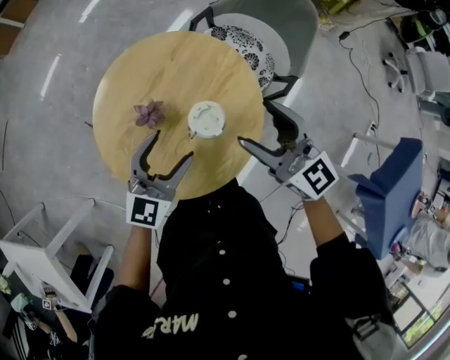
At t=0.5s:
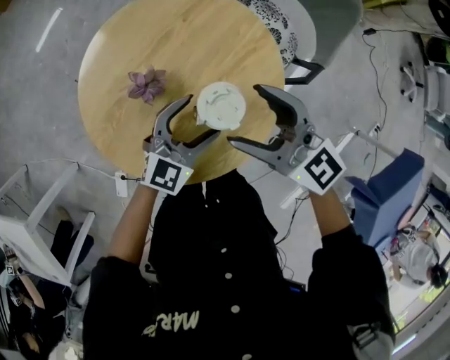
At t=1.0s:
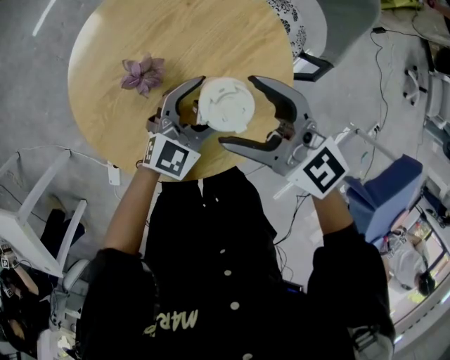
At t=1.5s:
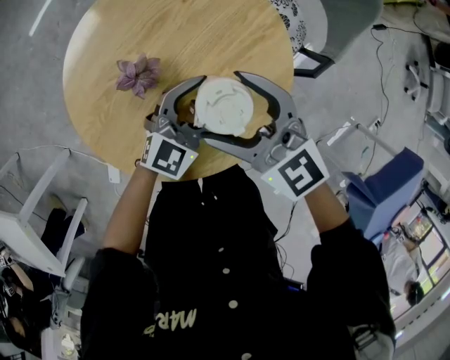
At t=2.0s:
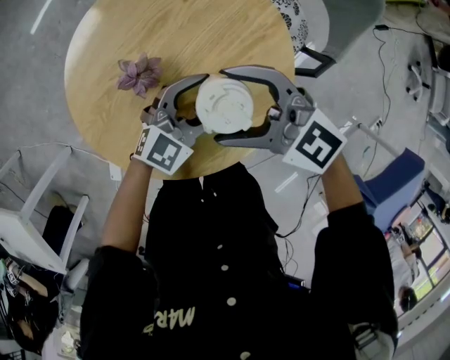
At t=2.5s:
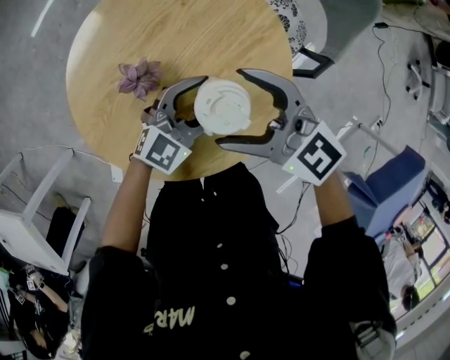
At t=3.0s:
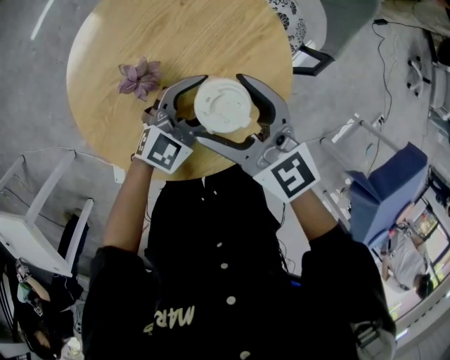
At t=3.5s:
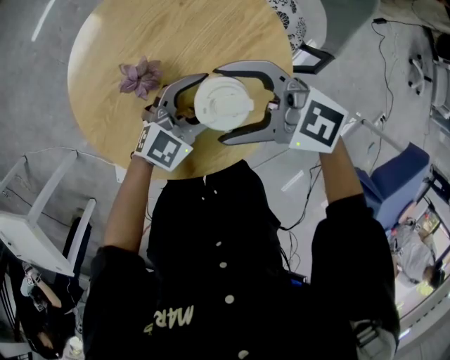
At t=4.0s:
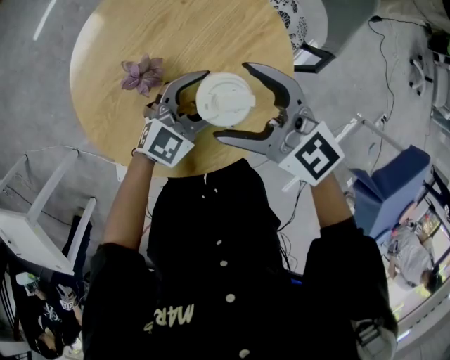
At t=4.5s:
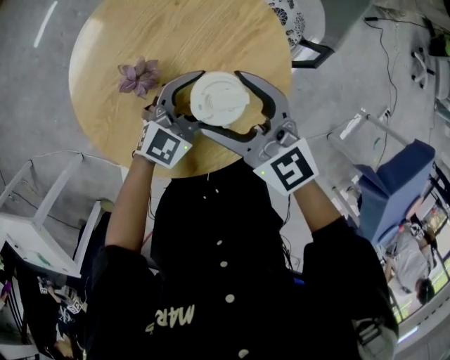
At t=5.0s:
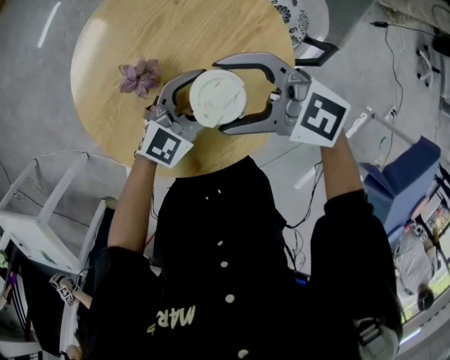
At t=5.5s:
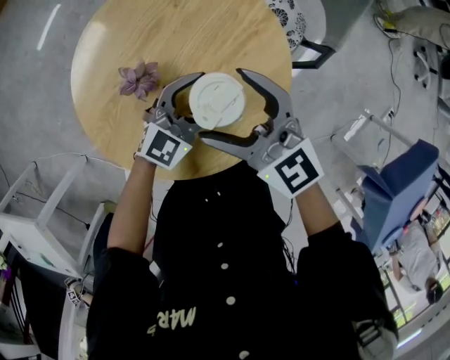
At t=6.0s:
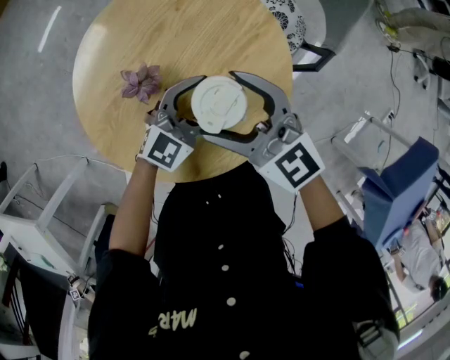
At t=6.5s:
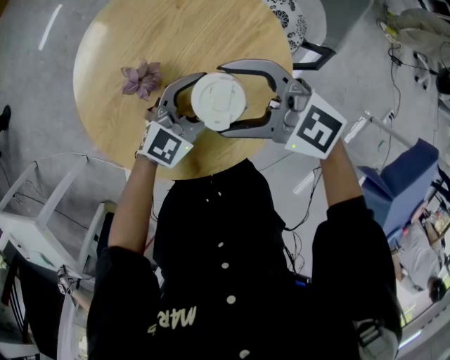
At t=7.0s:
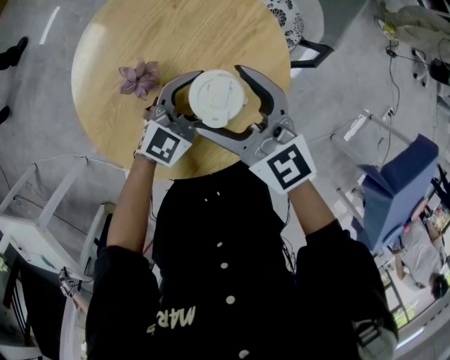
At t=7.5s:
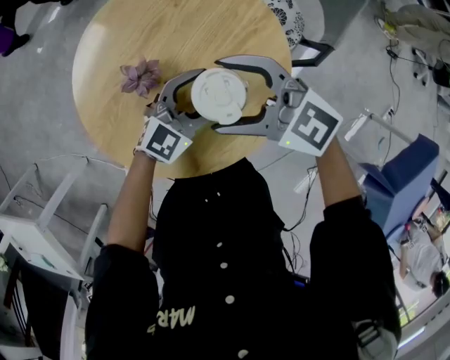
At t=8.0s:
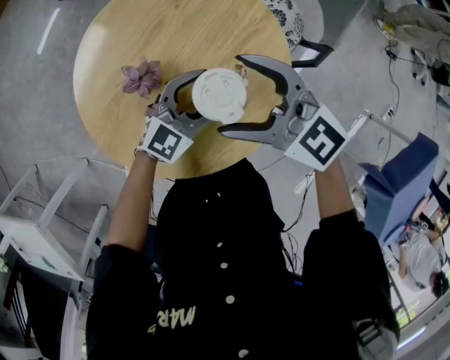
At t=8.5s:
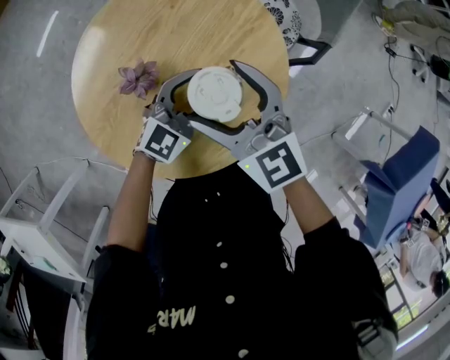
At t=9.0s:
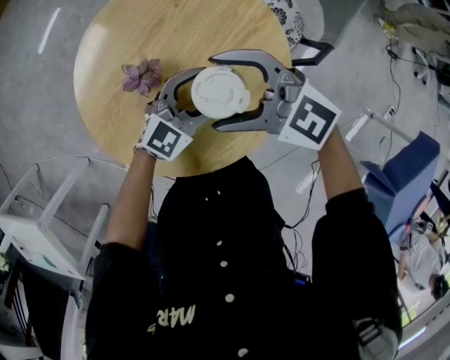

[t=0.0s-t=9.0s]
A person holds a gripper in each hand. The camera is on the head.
t=0.0s to t=2.0s: Both grippers travel together downward, approximately 15 cm. The right gripper swivels some 50 degrees.
t=2.0s to t=4.5s: The right gripper turns by approximately 30 degrees.
t=7.0s to t=9.0s: The right gripper rotates some 40 degrees.

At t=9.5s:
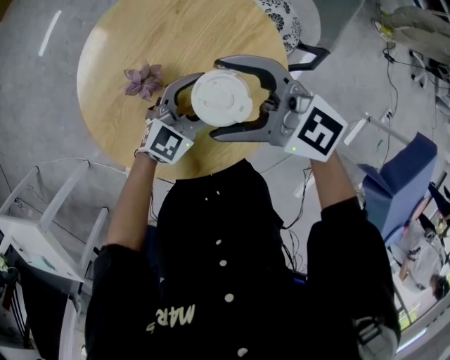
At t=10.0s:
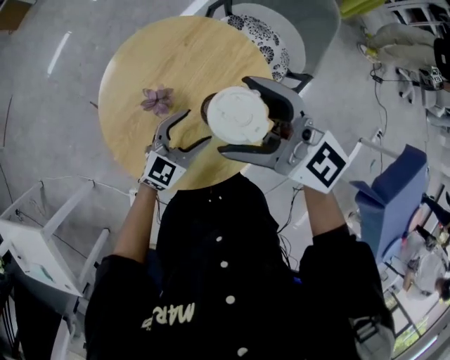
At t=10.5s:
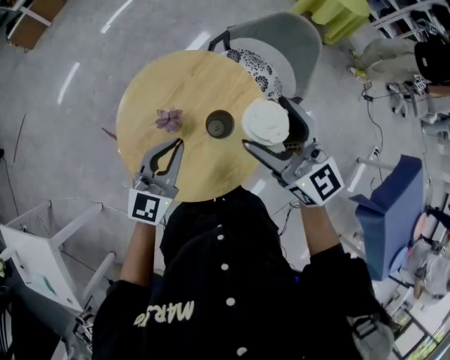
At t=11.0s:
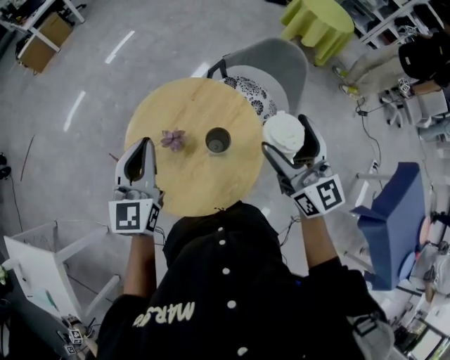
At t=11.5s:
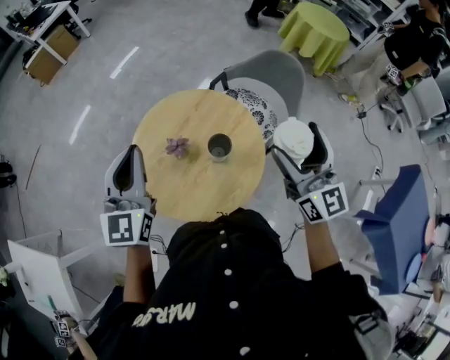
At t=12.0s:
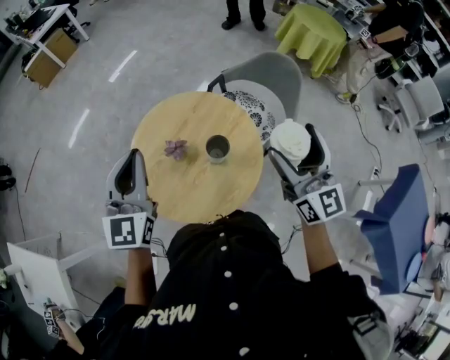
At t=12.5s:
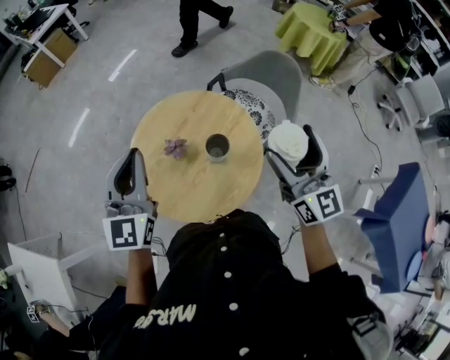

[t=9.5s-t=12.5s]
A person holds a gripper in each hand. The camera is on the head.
t=9.5s to t=11.0s: The right gripper moves upward, roughly 20 cm, and swivels some 50 degrees; the left gripper is displaced upward by roughly 35 cm, rotates some 50 degrees, and closes.
t=11.0s to t=12.5s: The left gripper moves upward, roughly 5 cm.

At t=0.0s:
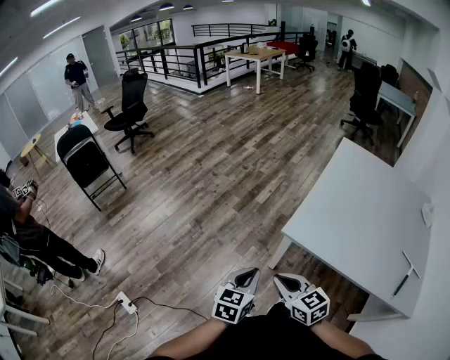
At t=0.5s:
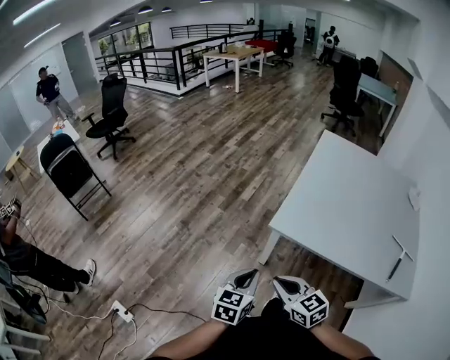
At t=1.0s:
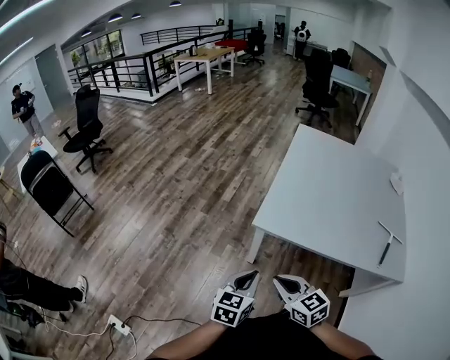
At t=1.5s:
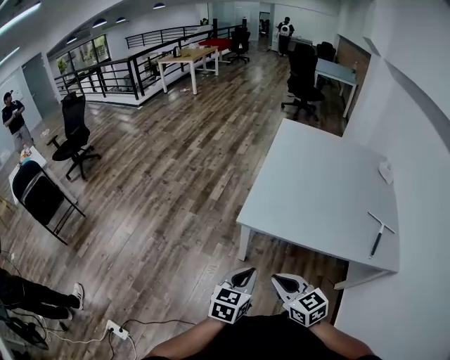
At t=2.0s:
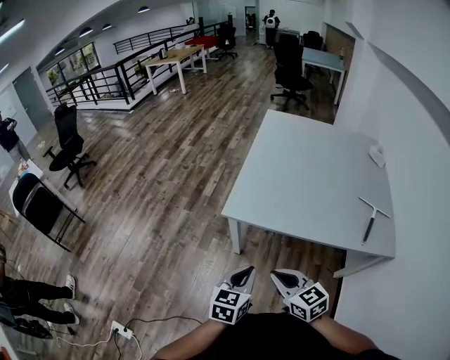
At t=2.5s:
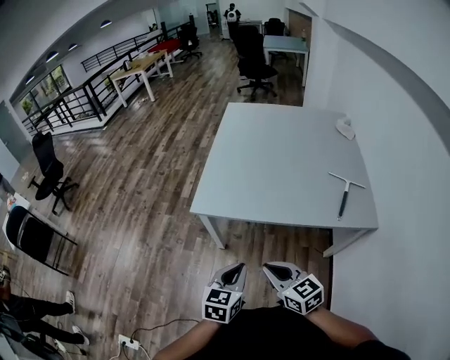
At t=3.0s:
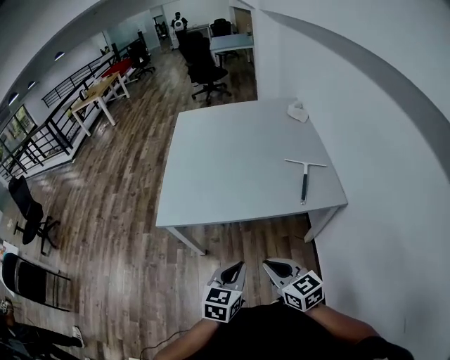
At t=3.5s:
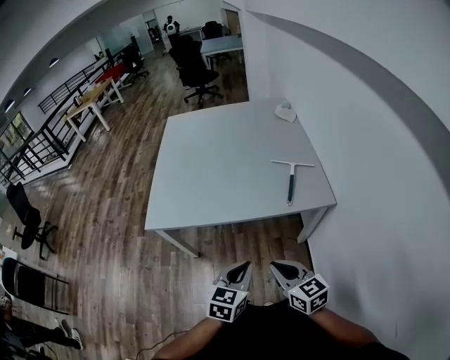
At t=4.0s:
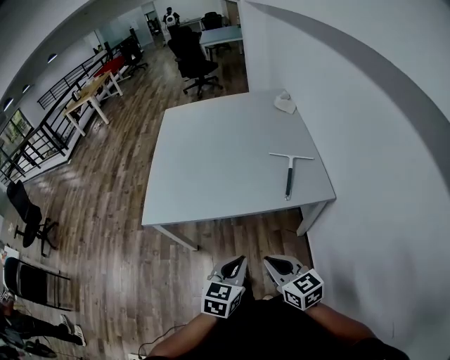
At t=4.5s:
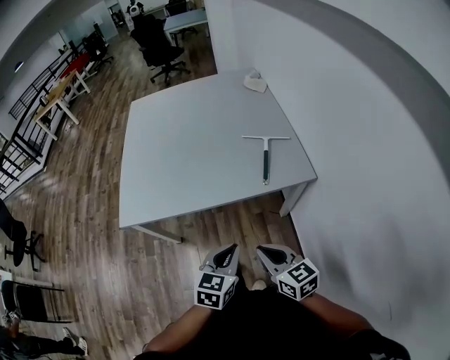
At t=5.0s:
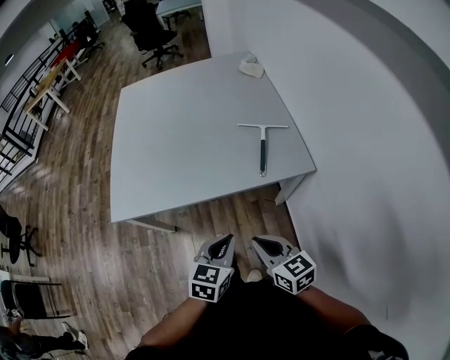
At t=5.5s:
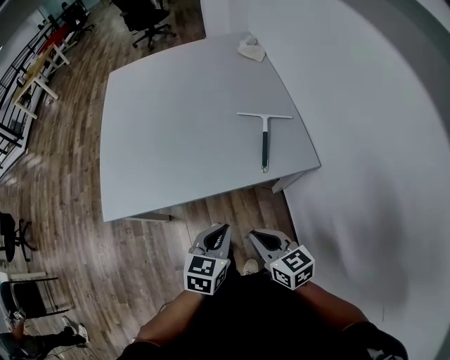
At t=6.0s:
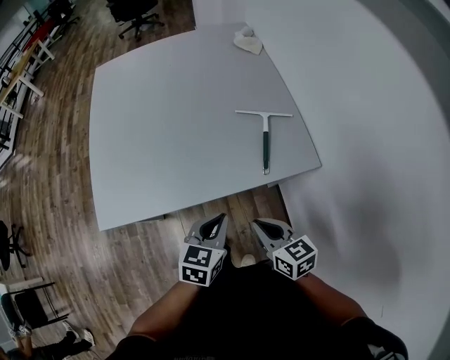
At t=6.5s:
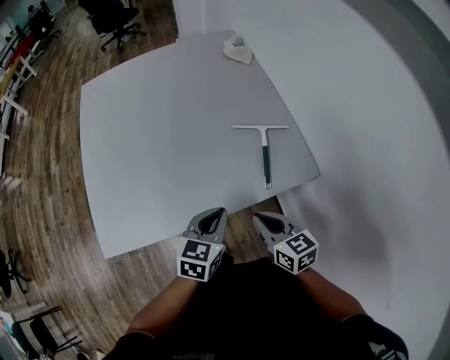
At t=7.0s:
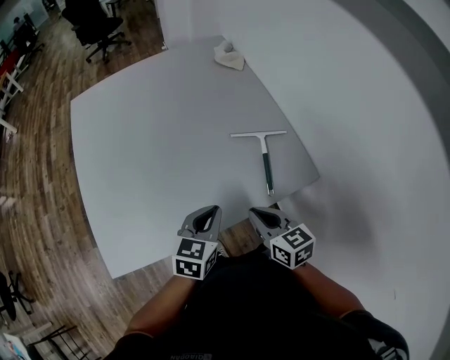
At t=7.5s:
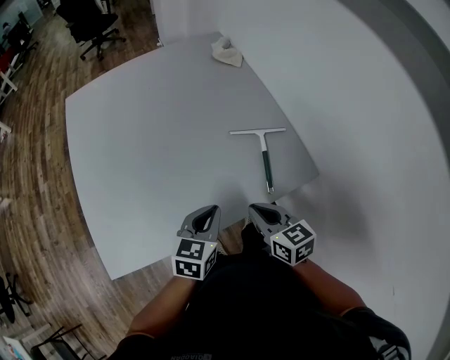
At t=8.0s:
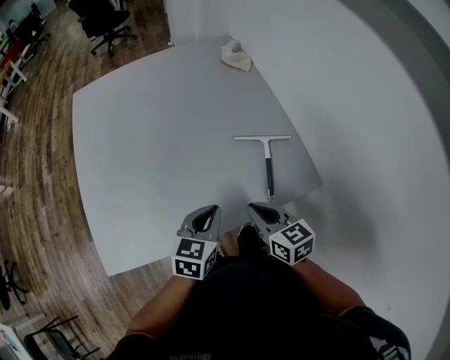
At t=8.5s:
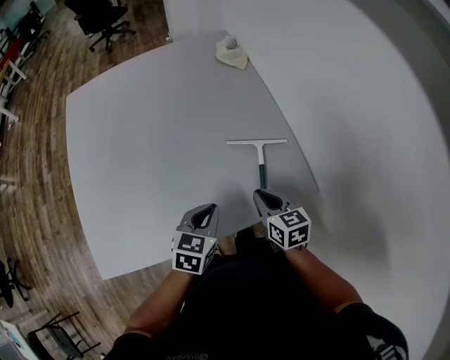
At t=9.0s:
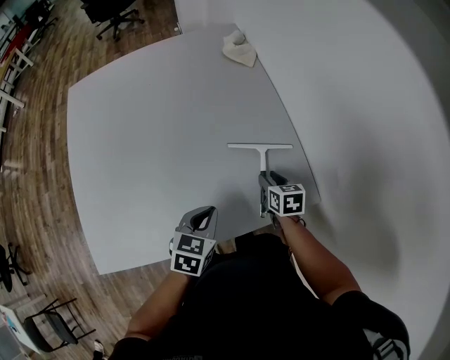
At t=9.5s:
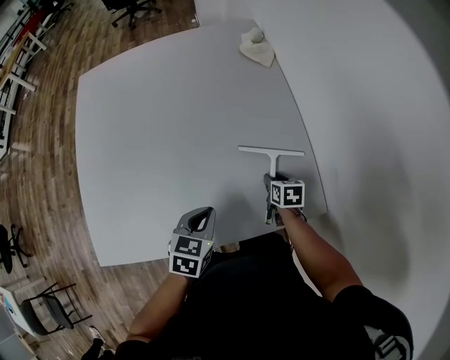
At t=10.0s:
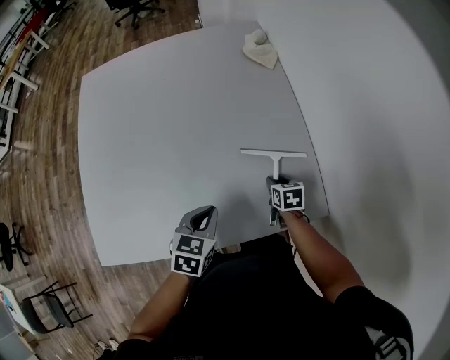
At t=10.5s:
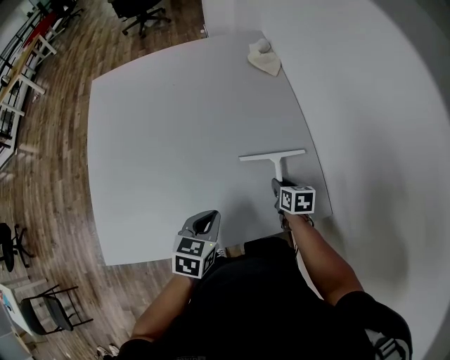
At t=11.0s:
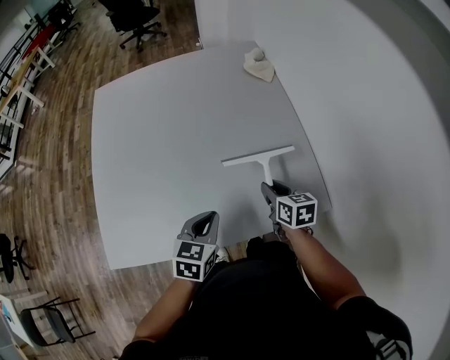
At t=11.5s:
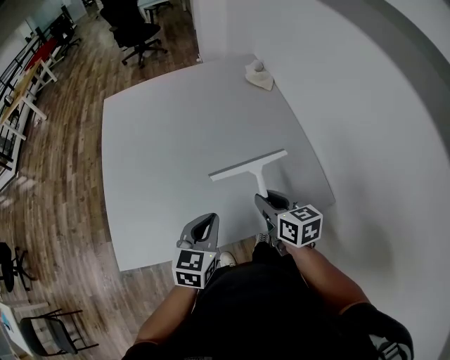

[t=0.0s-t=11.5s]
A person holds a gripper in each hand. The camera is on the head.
t=0.0s to t=2.0s: The two grippers go approximately 15 cm to the right and backward.
t=2.0s to t=4.0s: The grippers both shift to the right by some 30 cm. The right gripper swivels roughly 20 degrees; the left gripper changes its angle by some 20 degrees.
t=4.0s to t=6.0s: The right gripper shifts roughly 15 cm forward and downward; the left gripper moves forward, approximately 15 cm.
t=6.0s to t=7.5s: Both grippers travel together forward and to the left, about 15 cm.
t=7.5s to t=9.5s: The left gripper travels forward and downward by approximately 10 cm, while the right gripper travels forward, downward and to the right by approximately 30 cm, turns by roughly 30 degrees, and opens up.
t=9.5s to t=11.5s: The right gripper travels upward, to the left and backward by roughly 35 cm, and rotates roughly 30 degrees; the left gripper heads backward, to the left and upward, covering roughly 20 cm, and changes its angle by roughly 20 degrees.

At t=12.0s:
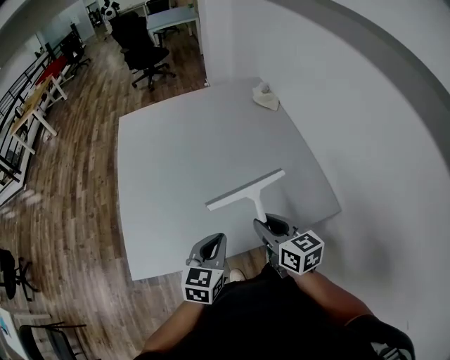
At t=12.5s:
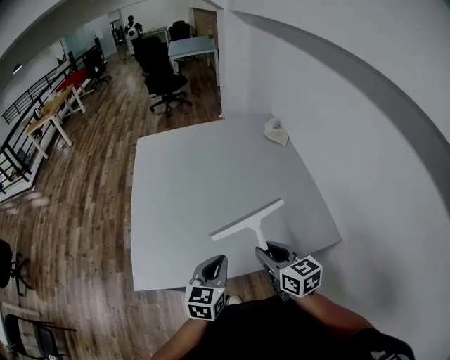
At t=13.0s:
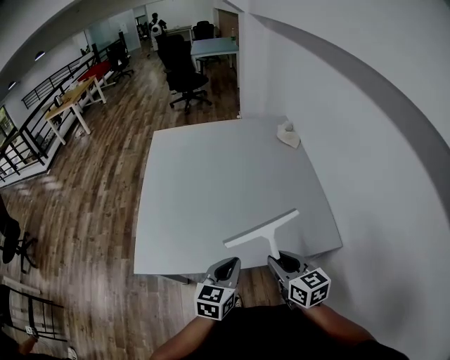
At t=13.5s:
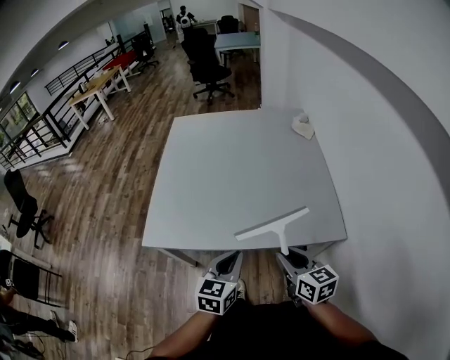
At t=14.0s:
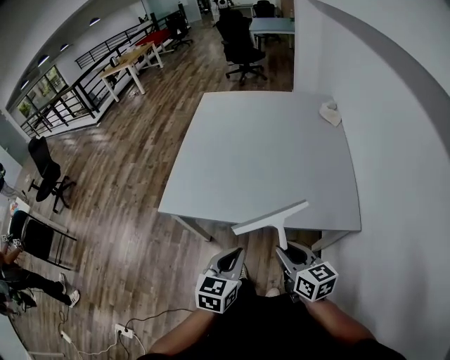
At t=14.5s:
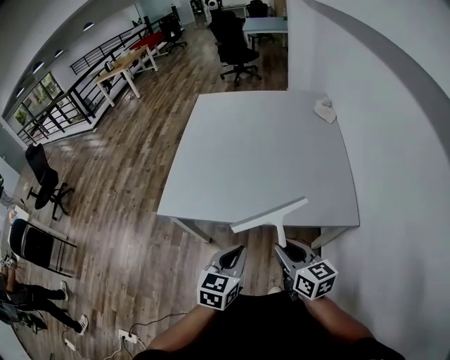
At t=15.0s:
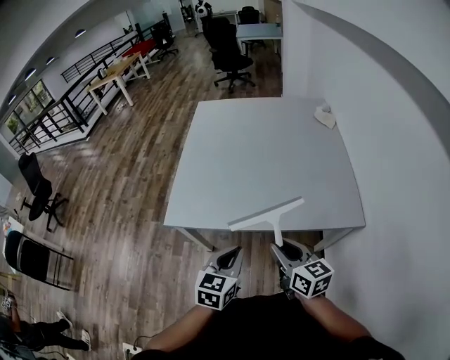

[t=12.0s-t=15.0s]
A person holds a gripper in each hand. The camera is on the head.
t=12.0s to t=13.5s: The right gripper travels backward and to the right by approximately 15 cm. Meanwhile the left gripper is displaced backward by approximately 15 cm.
t=13.5s to t=15.0s: Both grippers travel together to the left, roughly 10 cm.
